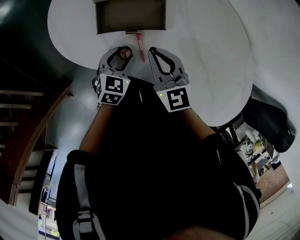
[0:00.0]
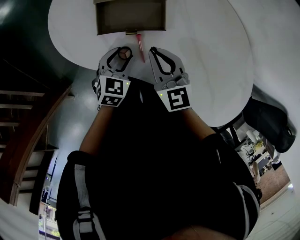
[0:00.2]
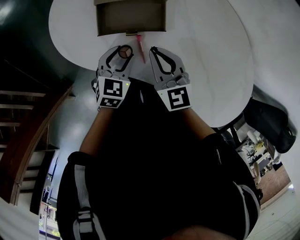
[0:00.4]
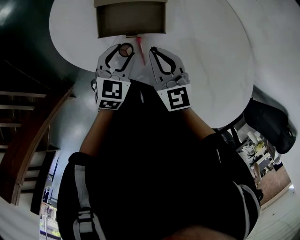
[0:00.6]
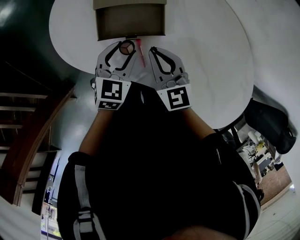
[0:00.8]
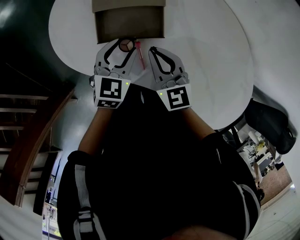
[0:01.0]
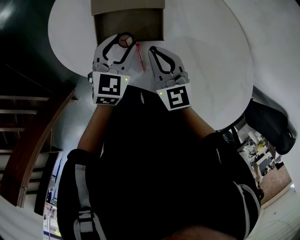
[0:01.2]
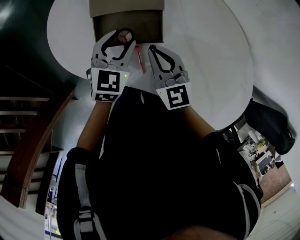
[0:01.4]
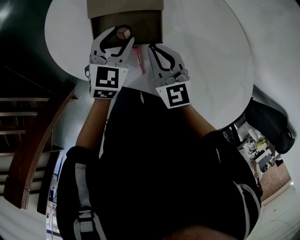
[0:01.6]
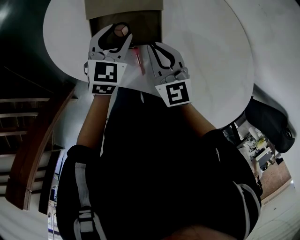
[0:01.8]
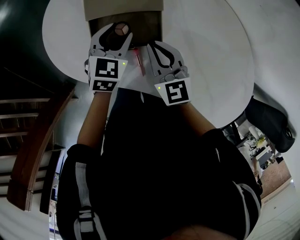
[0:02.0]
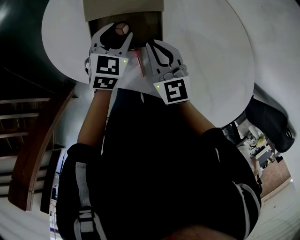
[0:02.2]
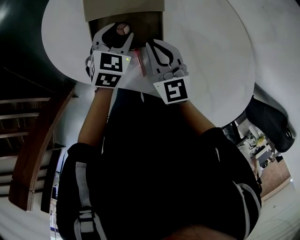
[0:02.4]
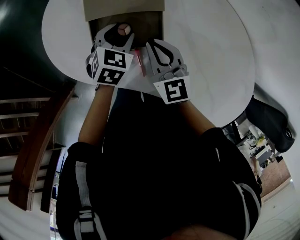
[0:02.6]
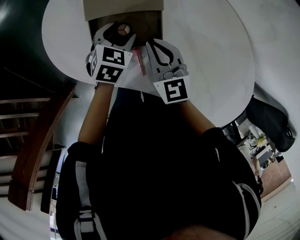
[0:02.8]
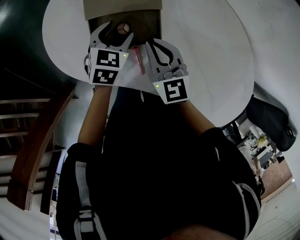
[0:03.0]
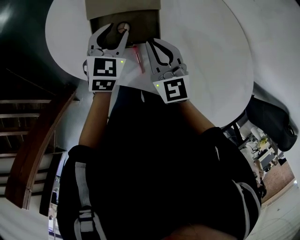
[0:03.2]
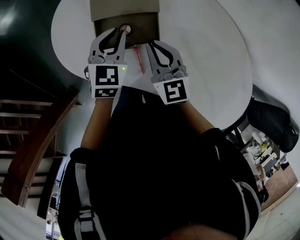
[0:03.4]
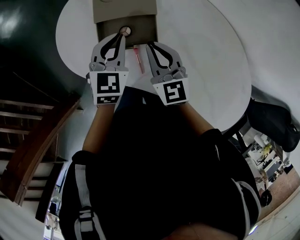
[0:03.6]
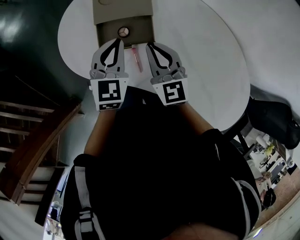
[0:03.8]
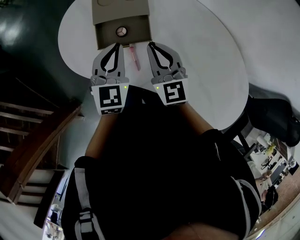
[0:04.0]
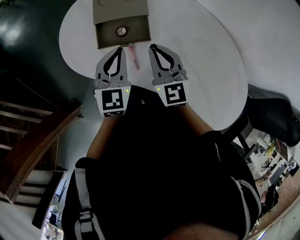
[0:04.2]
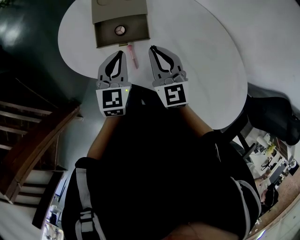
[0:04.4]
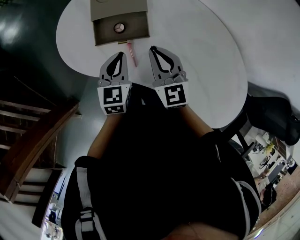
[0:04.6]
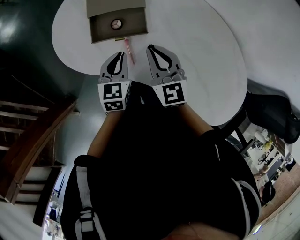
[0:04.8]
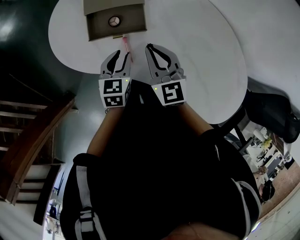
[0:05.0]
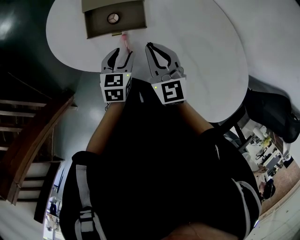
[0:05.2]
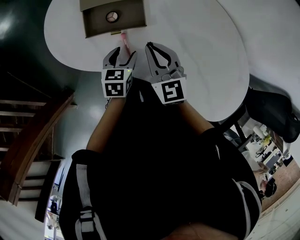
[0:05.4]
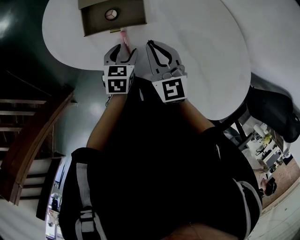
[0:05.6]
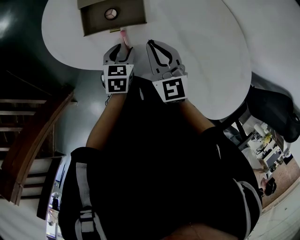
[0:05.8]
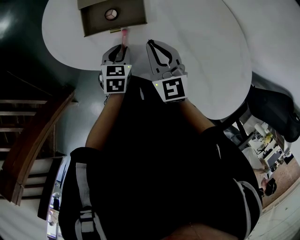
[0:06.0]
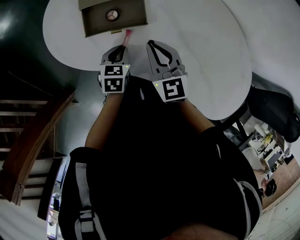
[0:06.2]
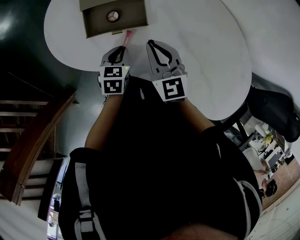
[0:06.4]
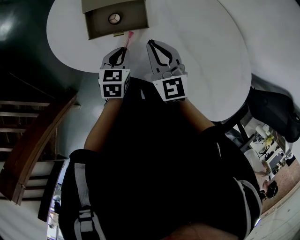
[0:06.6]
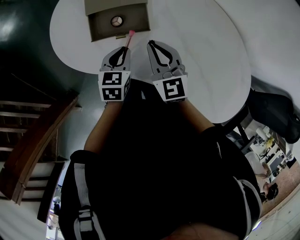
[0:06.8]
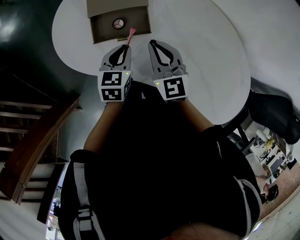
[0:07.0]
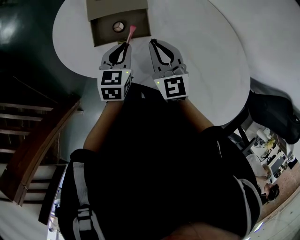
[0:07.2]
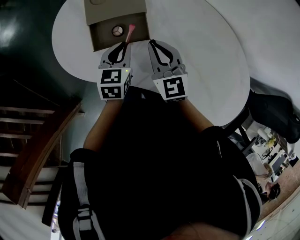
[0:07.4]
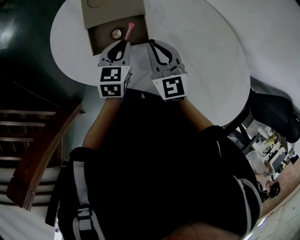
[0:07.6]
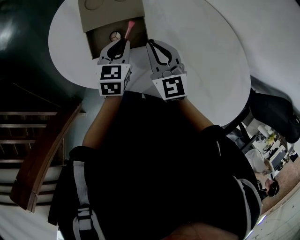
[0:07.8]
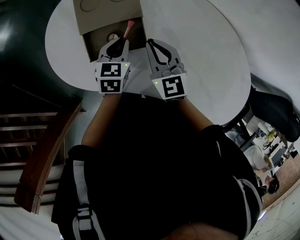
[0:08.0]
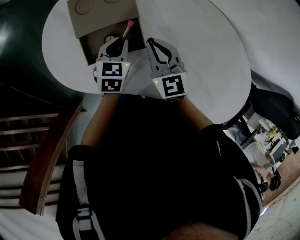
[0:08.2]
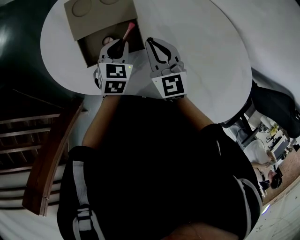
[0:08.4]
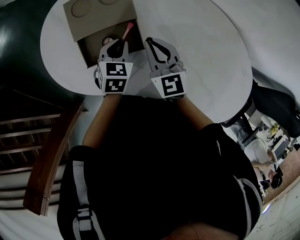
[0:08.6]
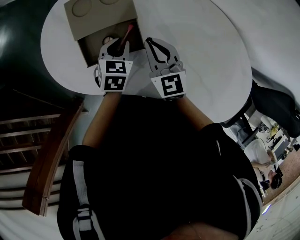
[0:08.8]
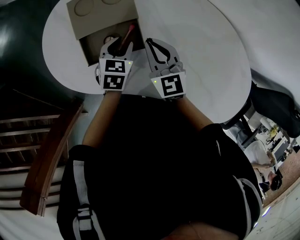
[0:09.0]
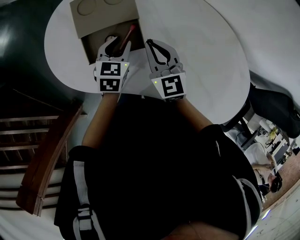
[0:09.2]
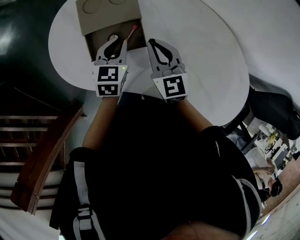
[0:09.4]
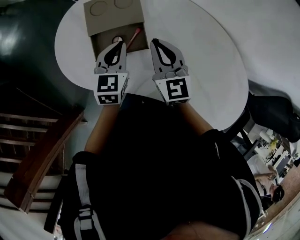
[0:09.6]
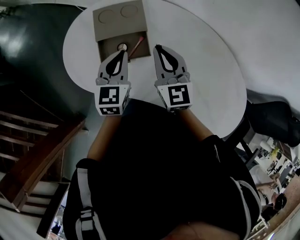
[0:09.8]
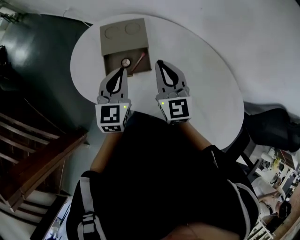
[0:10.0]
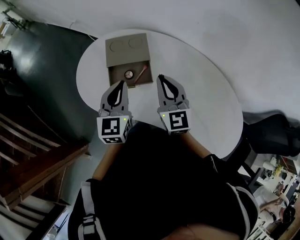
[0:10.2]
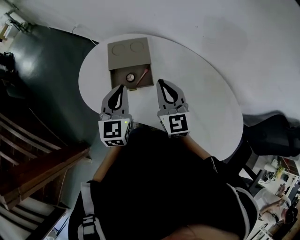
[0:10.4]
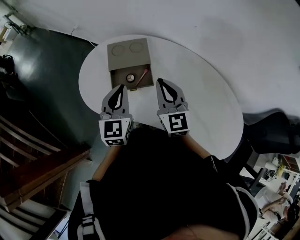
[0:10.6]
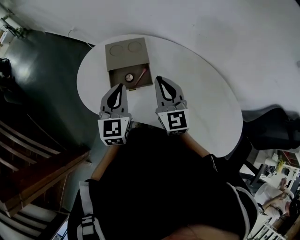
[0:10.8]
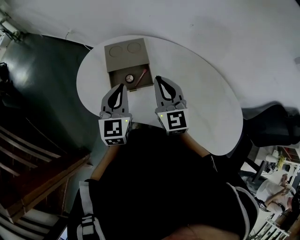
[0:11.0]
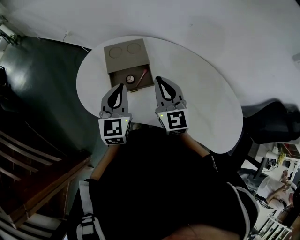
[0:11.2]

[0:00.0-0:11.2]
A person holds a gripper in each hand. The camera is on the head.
0:00.0 to 0:01.6: The right gripper shifts some 5 cm forward. The left gripper heads forward and upward, covering about 15 cm.
0:01.6 to 0:03.2: The grippers stay close to where they were, moving slightly.
0:03.2 to 0:04.8: The right gripper goes about 10 cm backward and upward; the left gripper shifts approximately 15 cm backward, and closes its fingers.
0:04.8 to 0:06.4: The left gripper heads downward, covering roughly 10 cm, and opens, then closes again.
0:06.4 to 0:08.0: The left gripper goes approximately 15 cm forward and upward, while the right gripper moves forward, some 10 cm.
0:08.0 to 0:09.6: Both grippers move upward, approximately 10 cm. The left gripper opens and closes again.
0:09.6 to 0:11.2: The left gripper heads upward, backward and to the left, covering some 15 cm; the right gripper is displaced upward and backward by roughly 10 cm.

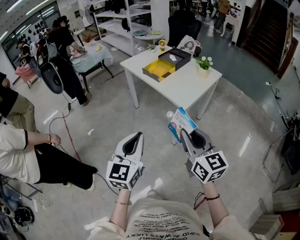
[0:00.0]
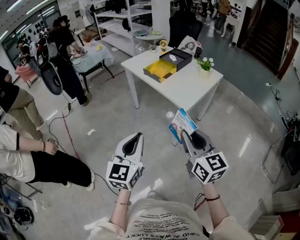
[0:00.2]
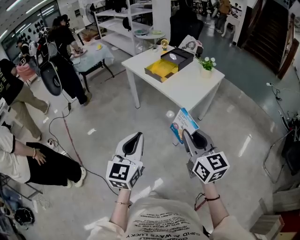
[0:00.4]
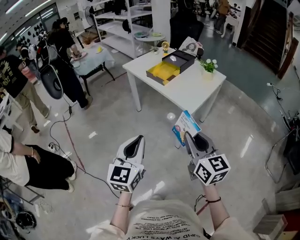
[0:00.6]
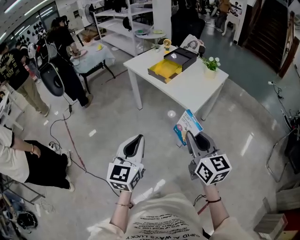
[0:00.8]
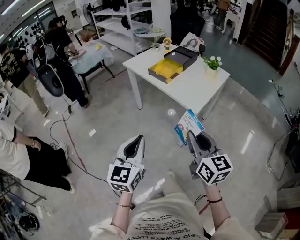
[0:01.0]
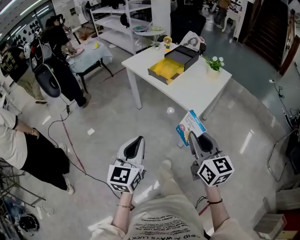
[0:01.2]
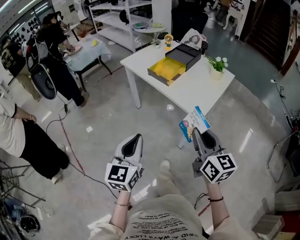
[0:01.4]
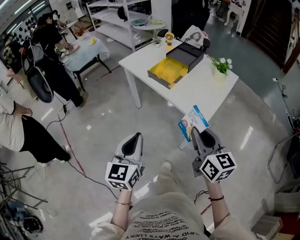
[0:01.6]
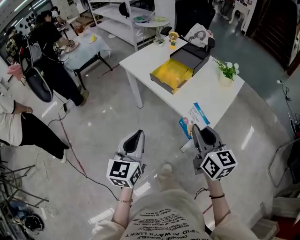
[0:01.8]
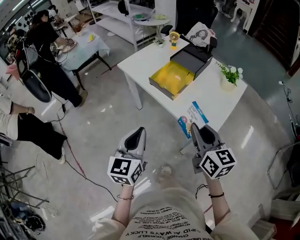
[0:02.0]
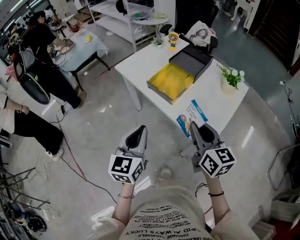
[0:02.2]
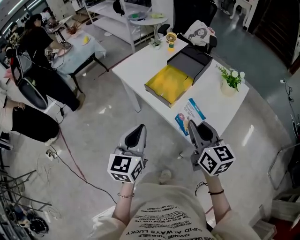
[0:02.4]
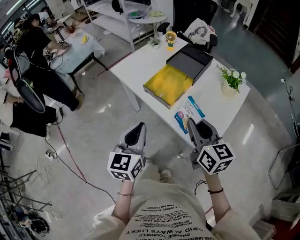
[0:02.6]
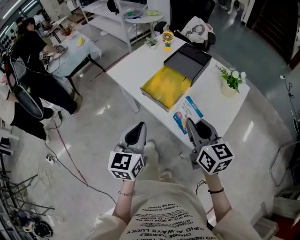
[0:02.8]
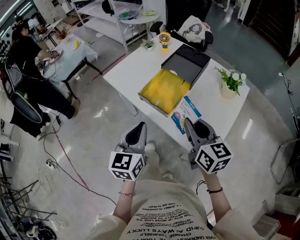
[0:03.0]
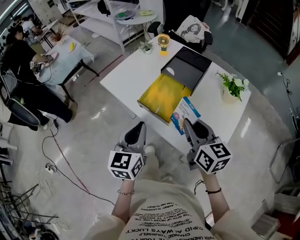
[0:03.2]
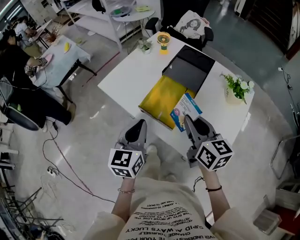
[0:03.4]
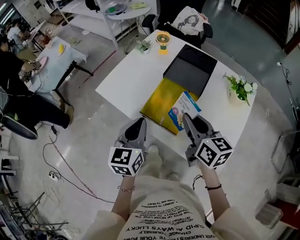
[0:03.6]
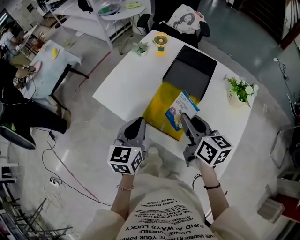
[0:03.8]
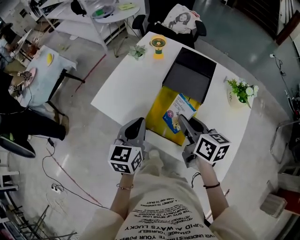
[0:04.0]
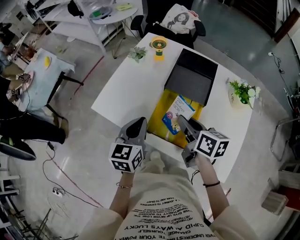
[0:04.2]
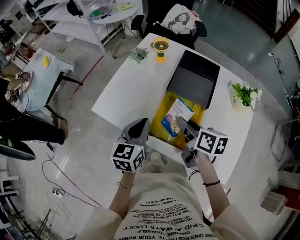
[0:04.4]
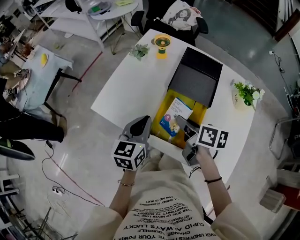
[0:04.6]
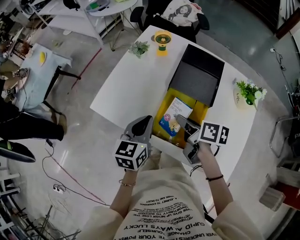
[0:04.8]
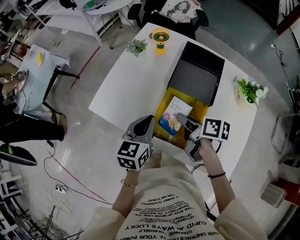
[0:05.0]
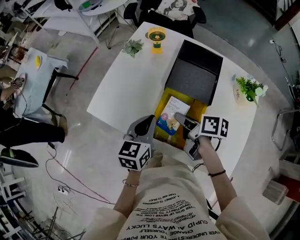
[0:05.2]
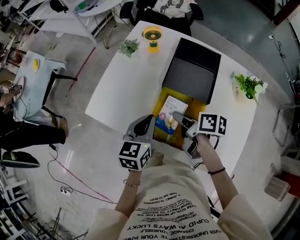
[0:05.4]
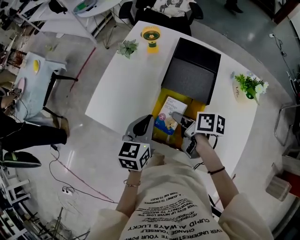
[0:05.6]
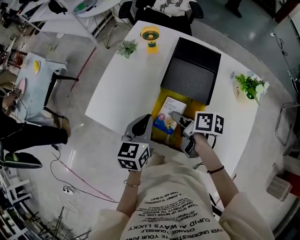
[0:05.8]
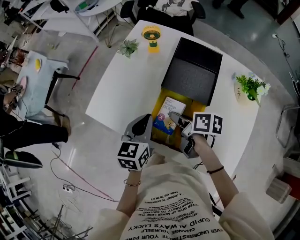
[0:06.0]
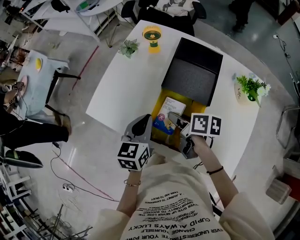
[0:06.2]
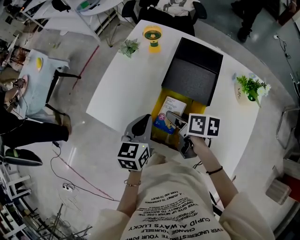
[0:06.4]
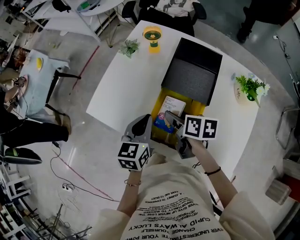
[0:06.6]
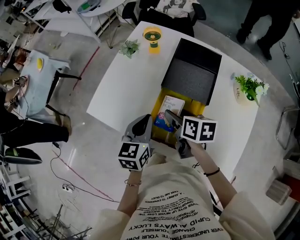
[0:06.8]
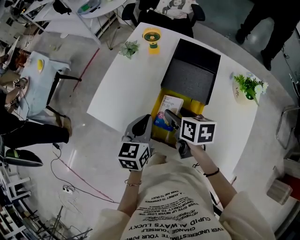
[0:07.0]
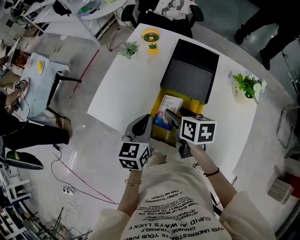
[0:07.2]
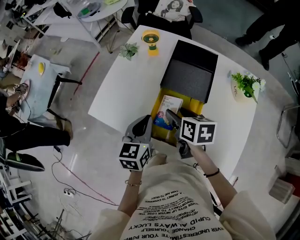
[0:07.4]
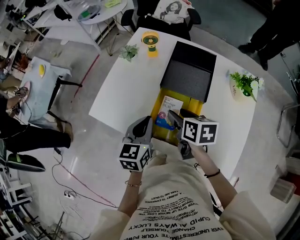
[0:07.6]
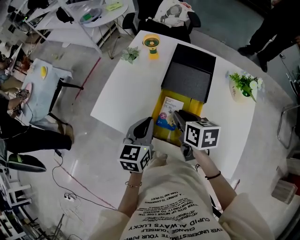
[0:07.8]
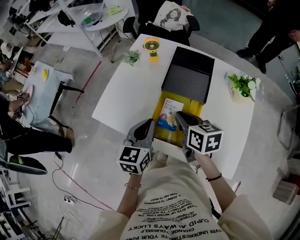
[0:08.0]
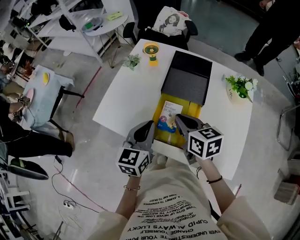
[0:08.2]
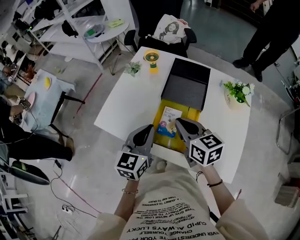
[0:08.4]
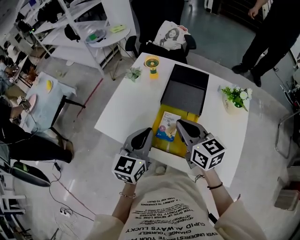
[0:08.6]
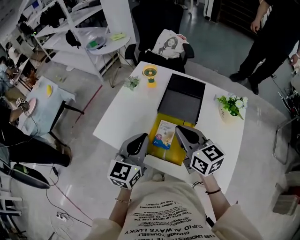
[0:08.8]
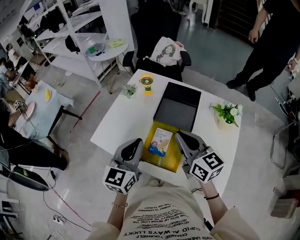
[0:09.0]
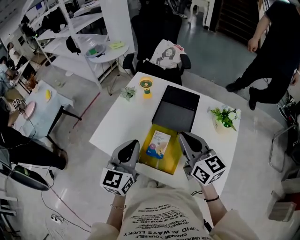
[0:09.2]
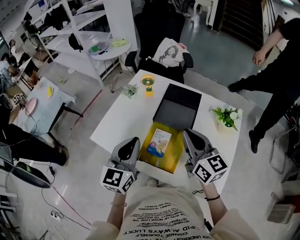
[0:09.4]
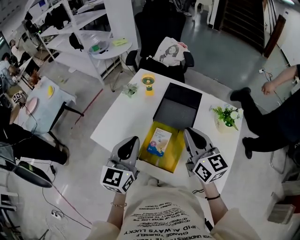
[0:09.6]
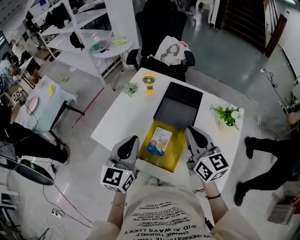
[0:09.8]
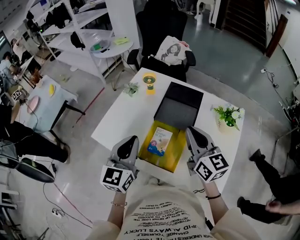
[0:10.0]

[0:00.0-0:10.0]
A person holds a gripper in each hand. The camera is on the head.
0:00.0 to 0:01.4: The left gripper shifts roughly 15 cm forward and to the left. Meanwhile the right gripper goes roughly 15 cm forward.
0:01.4 to 0:02.8: The grippers both shift forward by about 30 cm.
0:02.8 to 0:04.2: Both grippers move forward, roughly 25 cm. The right gripper changes its angle by roughly 30 degrees.
0:04.2 to 0:05.8: The right gripper travels downward by some 10 cm, and changes its angle by some 30 degrees. Meanwhile the left gripper moves approximately 5 cm.
0:05.8 to 0:07.2: The right gripper swivels some 30 degrees, and opens its fingers.
0:07.2 to 0:08.6: The two grippers go some 10 cm upward. The right gripper swivels some 40 degrees, and closes up.
0:08.6 to 0:10.0: The right gripper shifts approximately 10 cm to the right and upward, while the left gripper is displaced upward by approximately 5 cm.

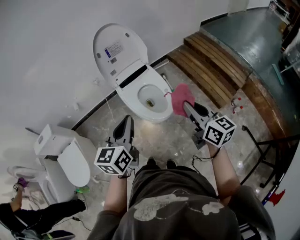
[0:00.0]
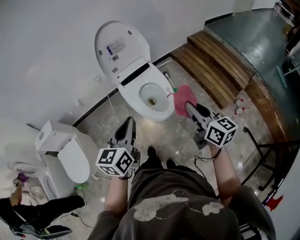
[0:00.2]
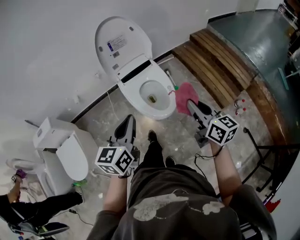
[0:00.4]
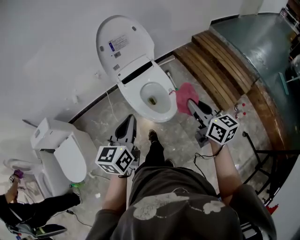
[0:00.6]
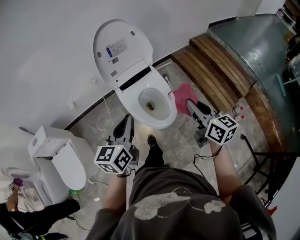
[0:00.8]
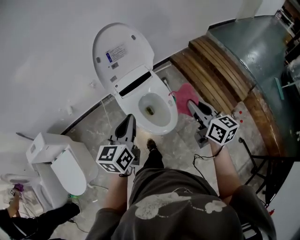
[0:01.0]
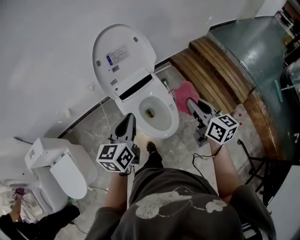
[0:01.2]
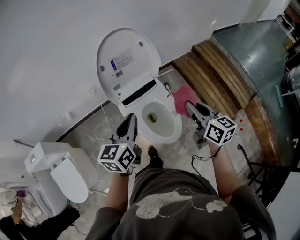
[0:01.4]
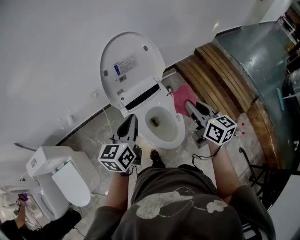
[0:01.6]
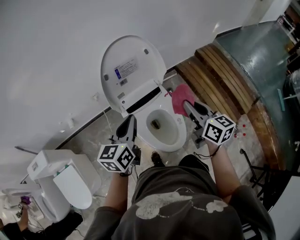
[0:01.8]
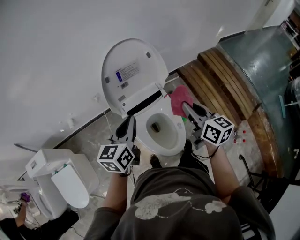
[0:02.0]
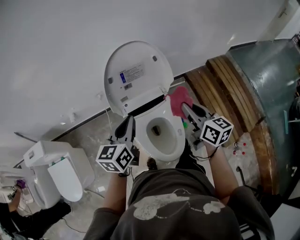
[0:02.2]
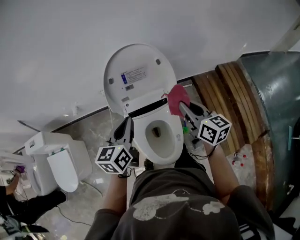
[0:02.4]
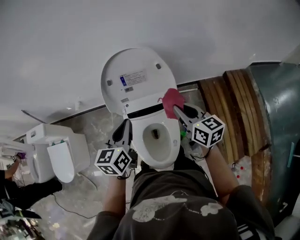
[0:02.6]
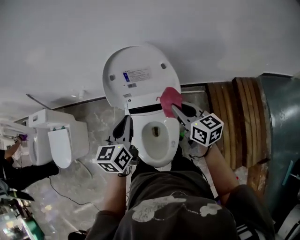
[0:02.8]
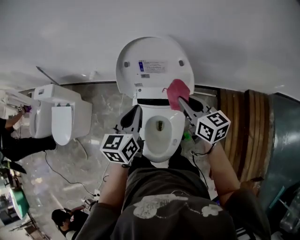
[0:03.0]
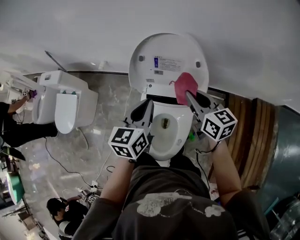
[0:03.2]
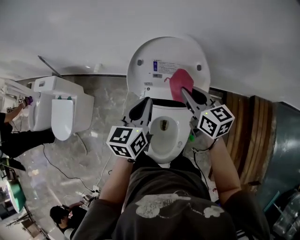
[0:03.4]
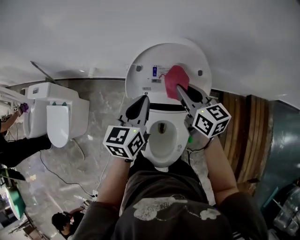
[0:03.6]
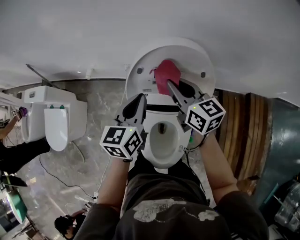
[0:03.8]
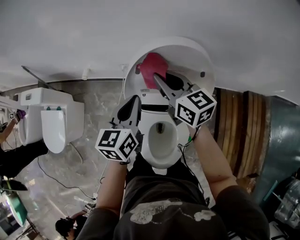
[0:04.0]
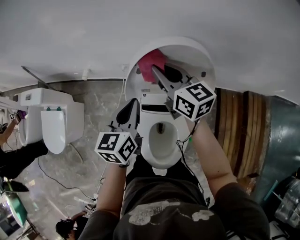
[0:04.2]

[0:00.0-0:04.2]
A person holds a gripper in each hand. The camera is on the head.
0:00.0 to 0:01.4: Both grippers travel together forward, about 25 cm.
0:01.4 to 0:02.8: The left gripper ends up approximately 15 cm from where it was, and rotates about 30 degrees. Meanwhile the right gripper changes place by approximately 25 cm, and rotates some 40 degrees.
0:02.8 to 0:04.2: The right gripper moves forward and to the left, about 25 cm. Meanwhile the left gripper moves forward and to the left, approximately 15 cm.
